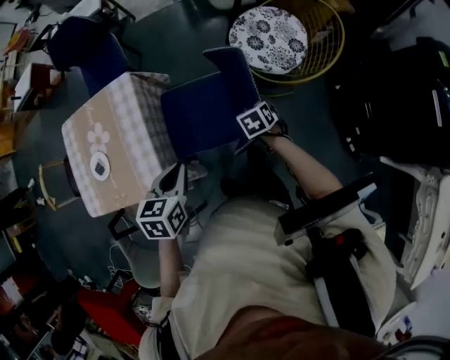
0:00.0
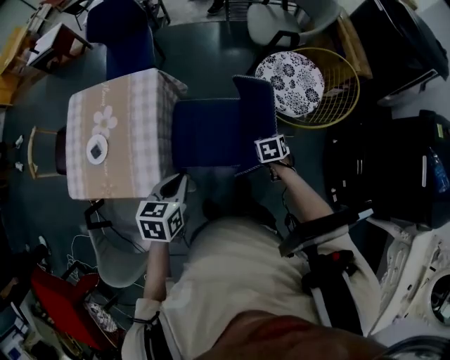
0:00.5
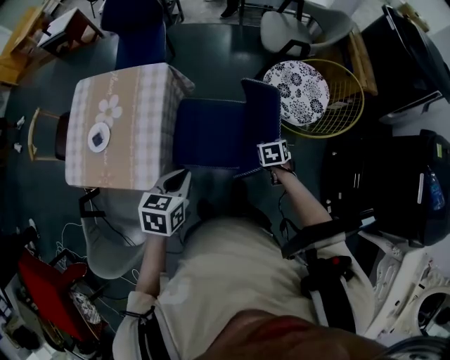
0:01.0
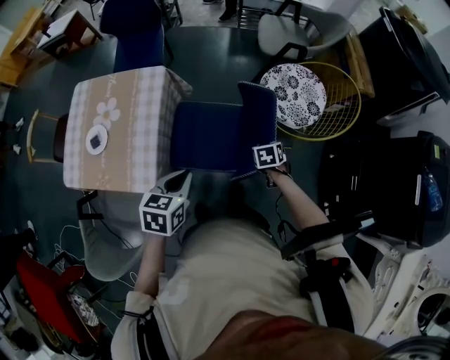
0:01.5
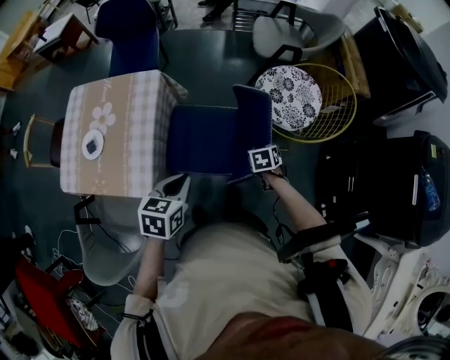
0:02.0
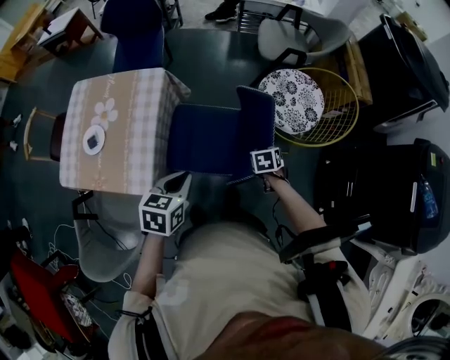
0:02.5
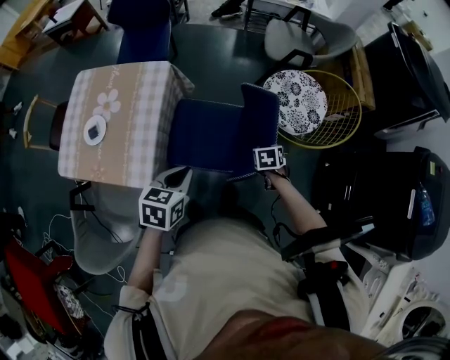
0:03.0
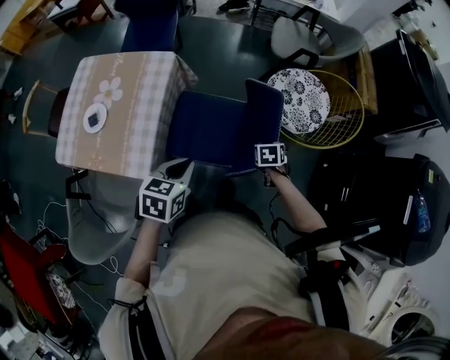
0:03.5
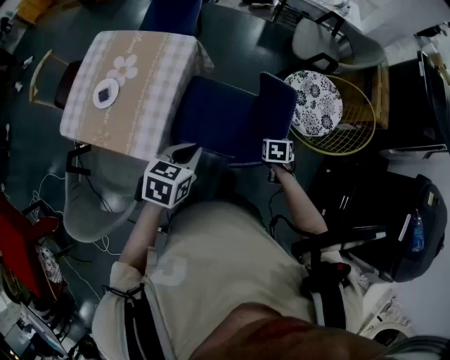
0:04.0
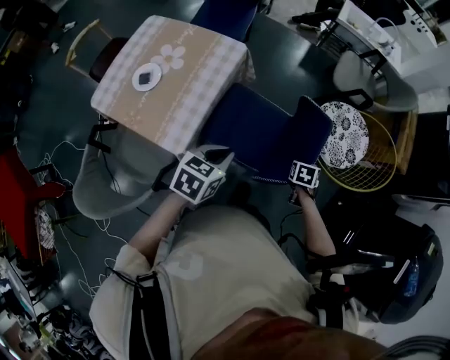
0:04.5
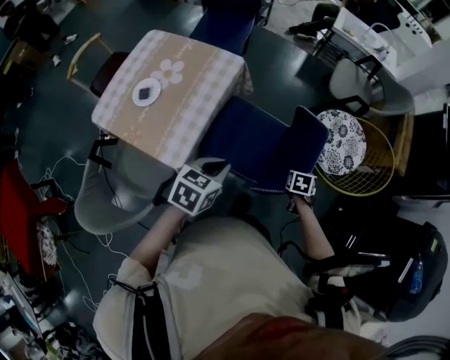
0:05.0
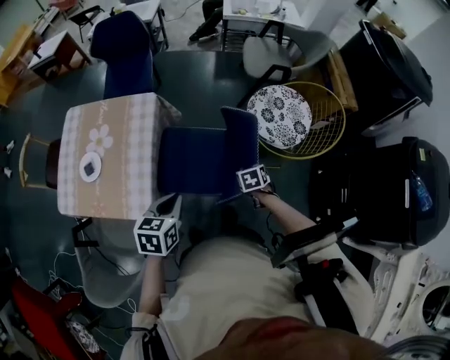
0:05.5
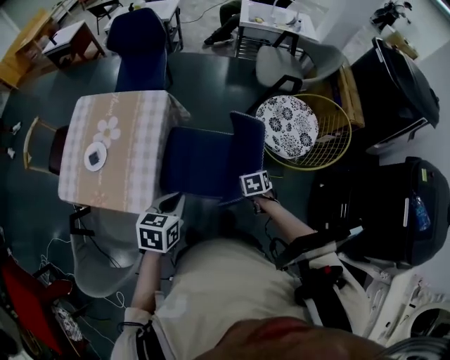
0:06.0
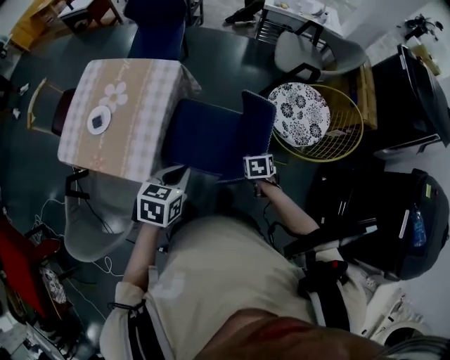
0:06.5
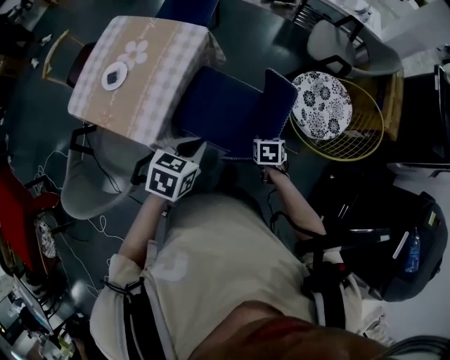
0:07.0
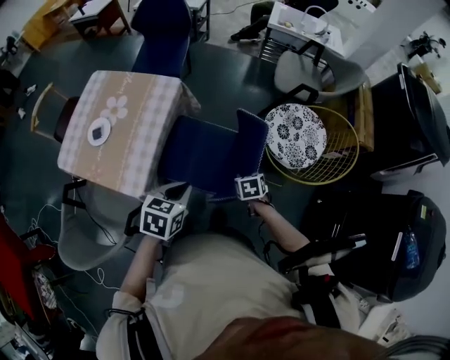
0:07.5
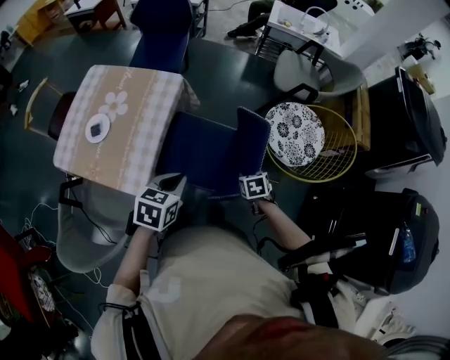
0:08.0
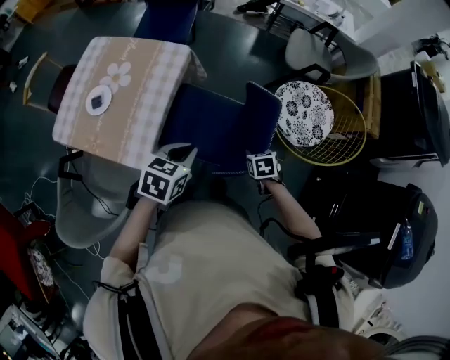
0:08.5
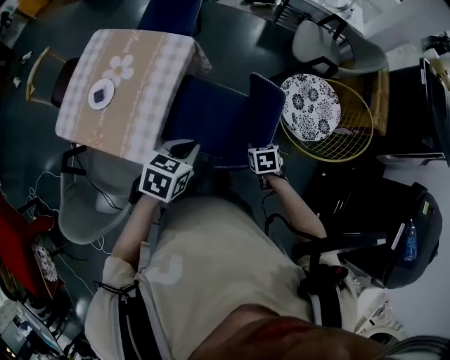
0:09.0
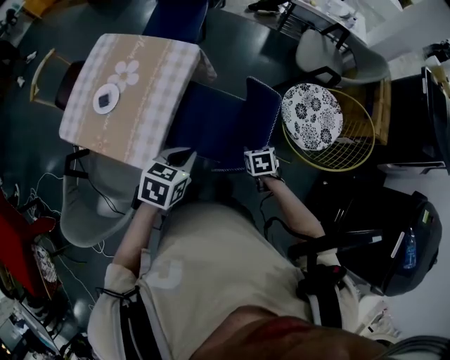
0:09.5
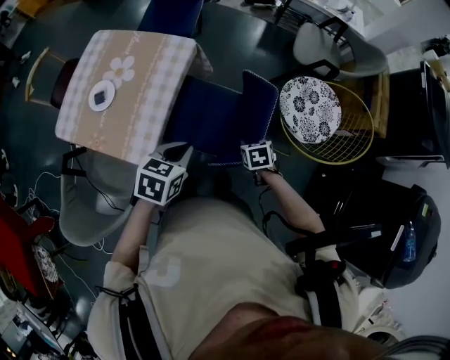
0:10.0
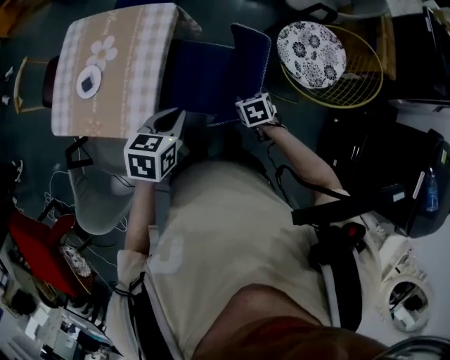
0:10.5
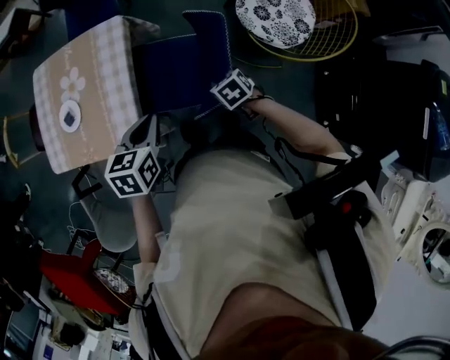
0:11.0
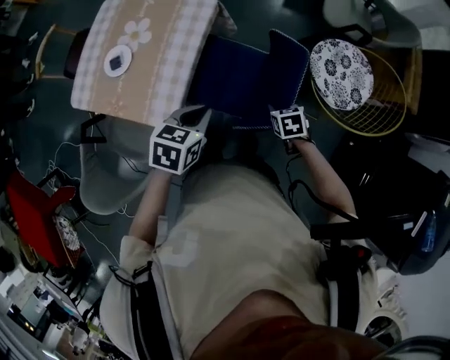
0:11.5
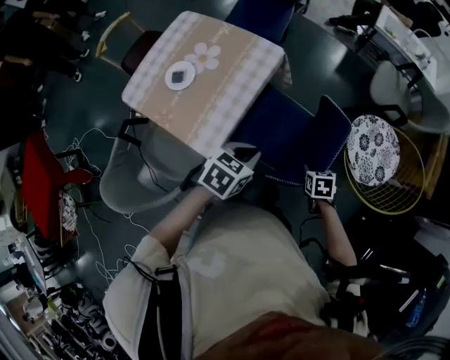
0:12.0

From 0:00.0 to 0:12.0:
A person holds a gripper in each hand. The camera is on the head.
From 0:00.0 to 0:04.0: The grippers move only a little.
From 0:04.0 to 0:08.0: The grippers stay close to where they were, moving slightly.
From 0:08.0 to 0:10.0: The right gripper ends up approximately 5 cm from where it was.
From 0:10.0 to 0:12.0: There are only small adjustments of the grippers.

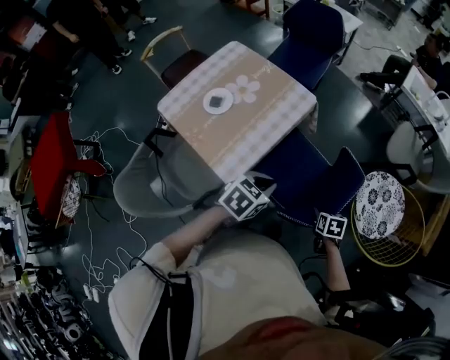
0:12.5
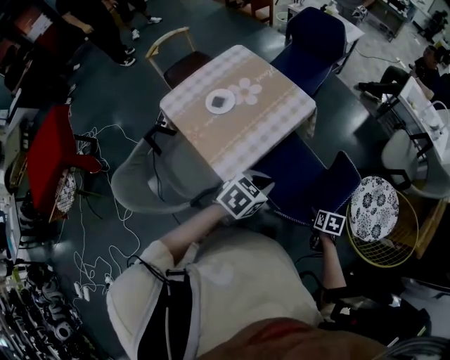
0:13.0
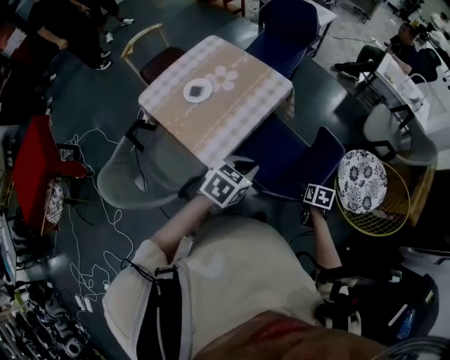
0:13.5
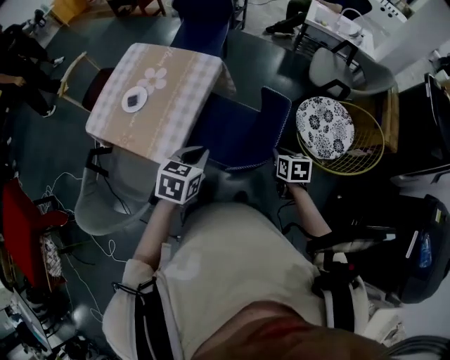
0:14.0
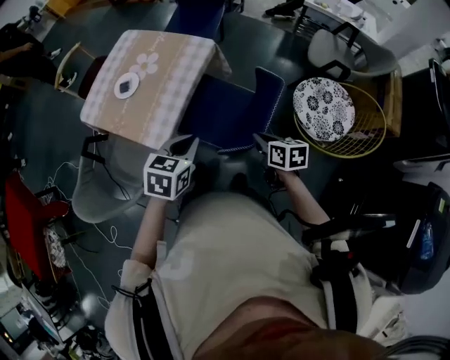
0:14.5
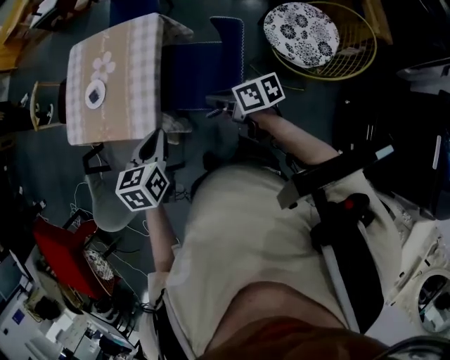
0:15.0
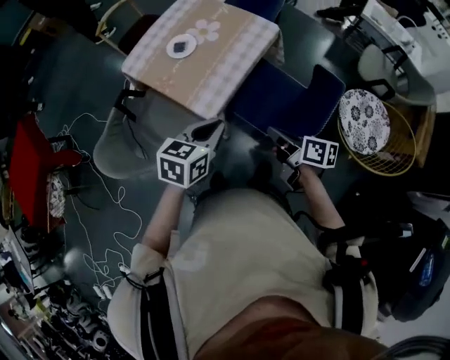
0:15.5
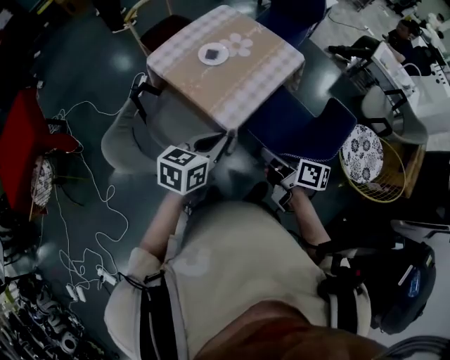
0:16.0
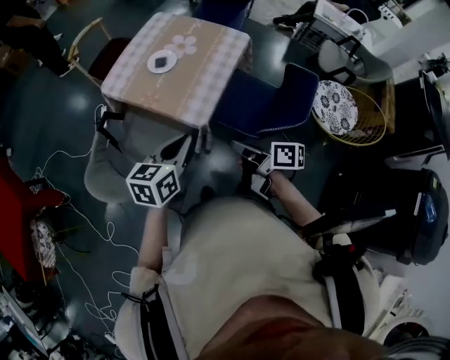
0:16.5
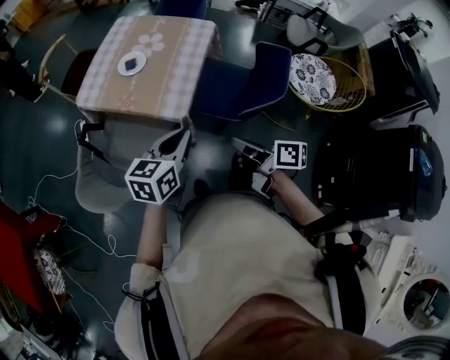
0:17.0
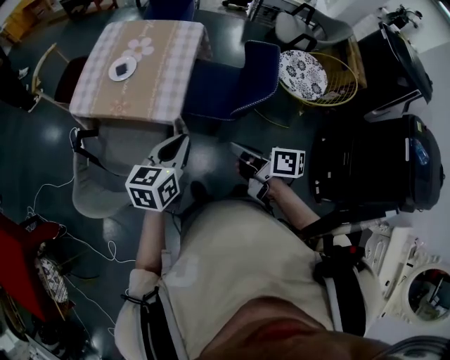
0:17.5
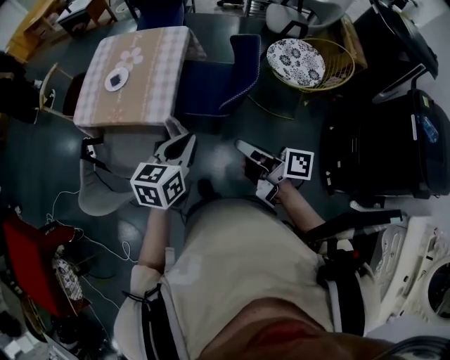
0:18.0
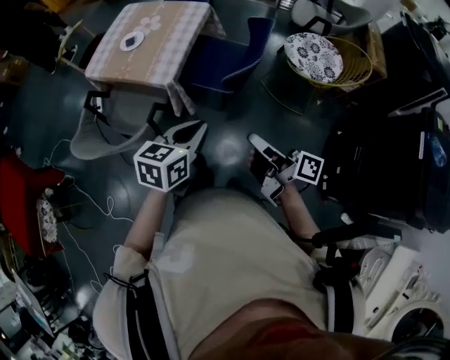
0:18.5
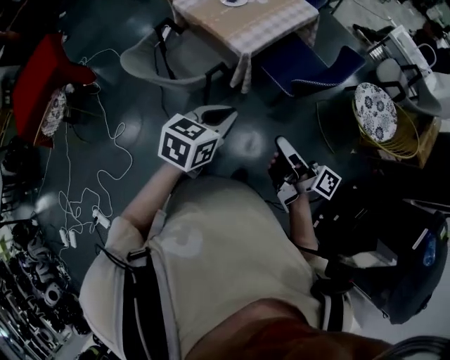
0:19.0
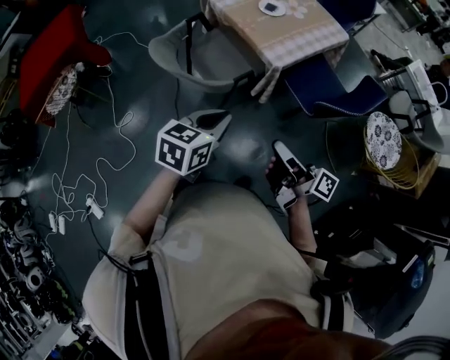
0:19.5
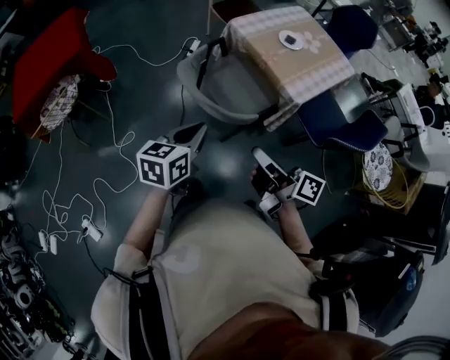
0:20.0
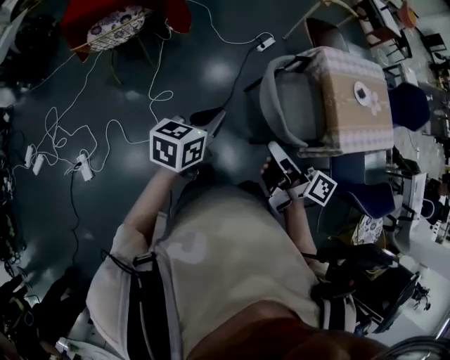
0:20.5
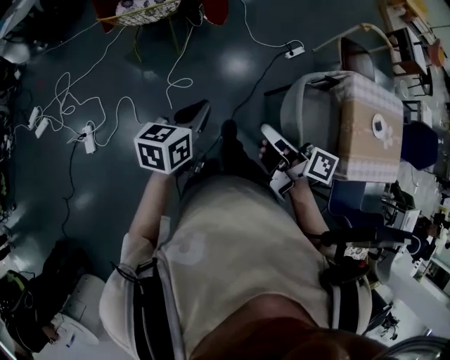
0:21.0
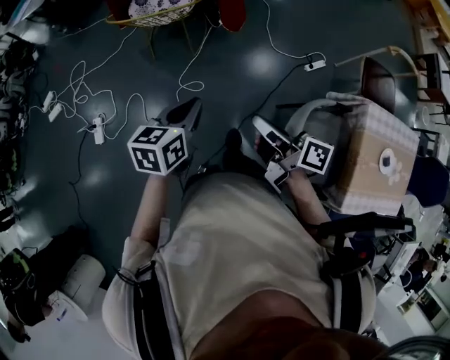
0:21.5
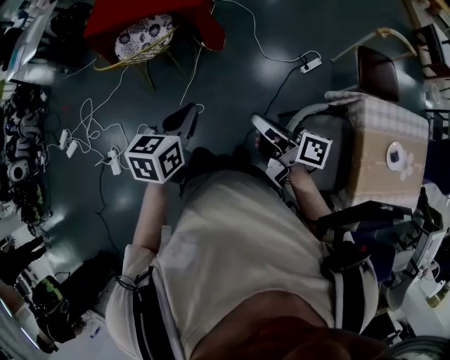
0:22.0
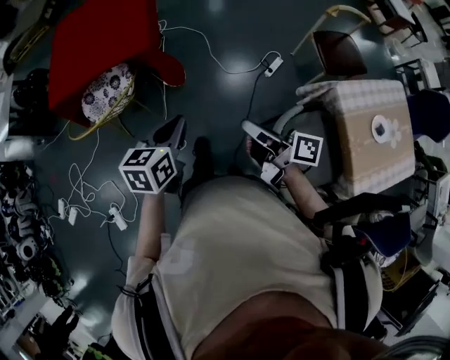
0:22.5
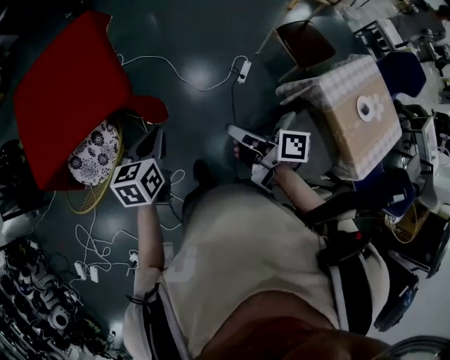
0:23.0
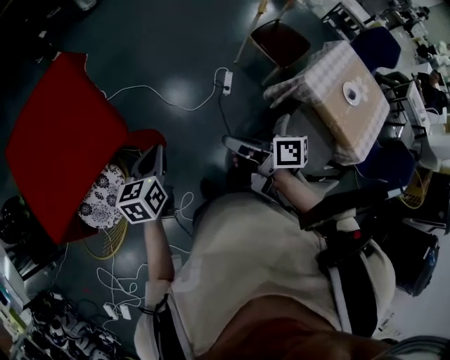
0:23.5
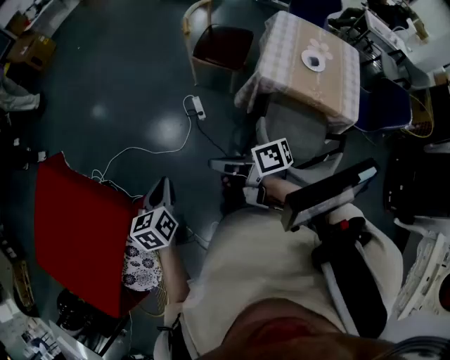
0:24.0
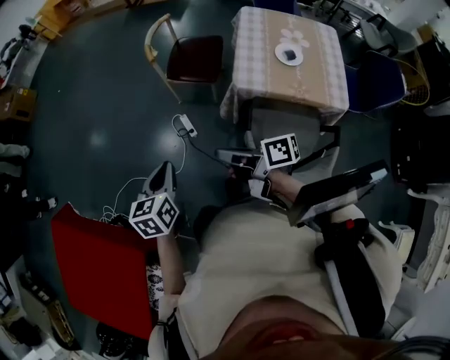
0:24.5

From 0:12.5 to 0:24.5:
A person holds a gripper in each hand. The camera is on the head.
From 0:12.5 to 0:14.5: The right gripper travels upward by about 10 cm, rotates approximately 30 degrees, and closes, while the left gripper is displaced backward by about 5 cm.
From 0:14.5 to 0:16.5: Both grippers travel together to the left, approximately 30 cm. The left gripper turns by some 30 degrees. The right gripper swivels roughly 30 degrees.
From 0:16.5 to 0:18.5: Both grippers move to the right and backward, some 30 cm. The right gripper changes its angle by approximately 30 degrees.
From 0:18.5 to 0:20.5: The pair of grippers is taken roughly 60 cm. The right gripper rotates about 60 degrees; the left gripper rotates approximately 60 degrees.
From 0:20.5 to 0:22.5: The right gripper ends up about 40 cm from where it was. Meanwhile the left gripper shifts by about 35 cm.
From 0:22.5 to 0:24.5: The right gripper moves roughly 25 cm, and turns by approximately 50 degrees. Meanwhile the left gripper changes place by about 35 cm, and swivels about 50 degrees.

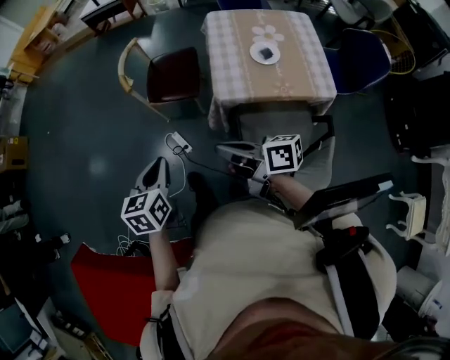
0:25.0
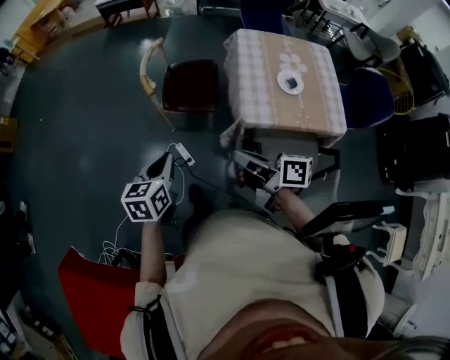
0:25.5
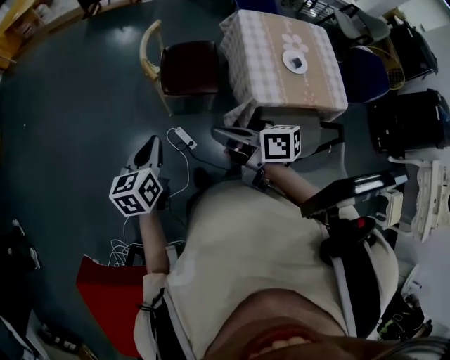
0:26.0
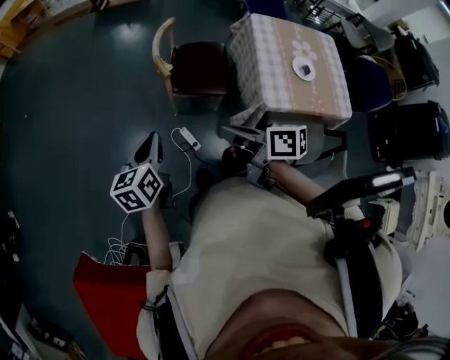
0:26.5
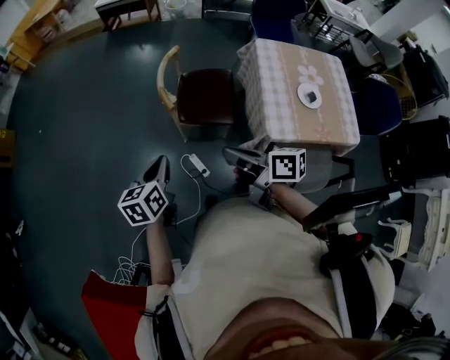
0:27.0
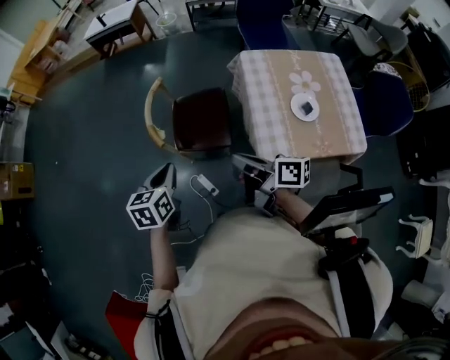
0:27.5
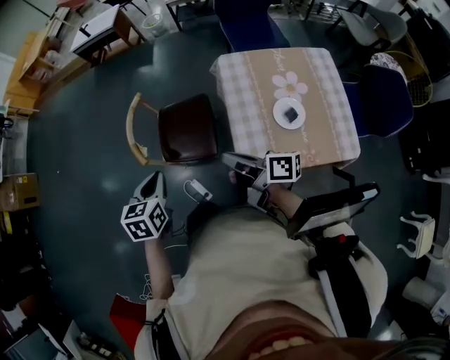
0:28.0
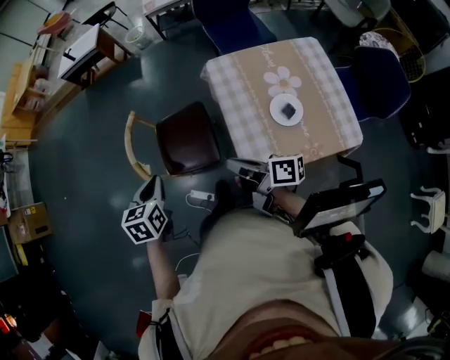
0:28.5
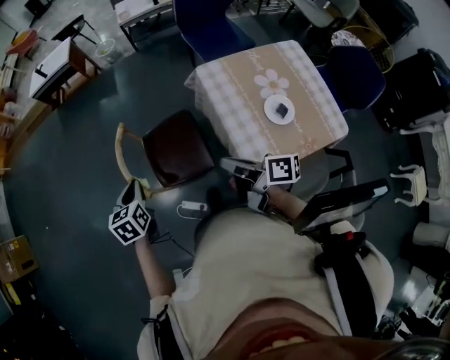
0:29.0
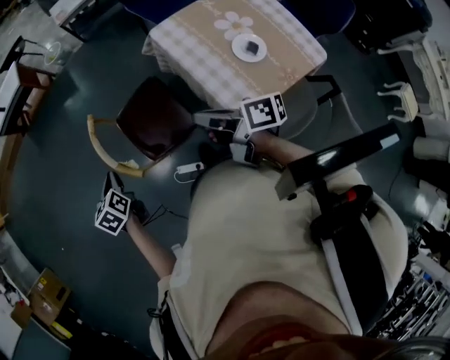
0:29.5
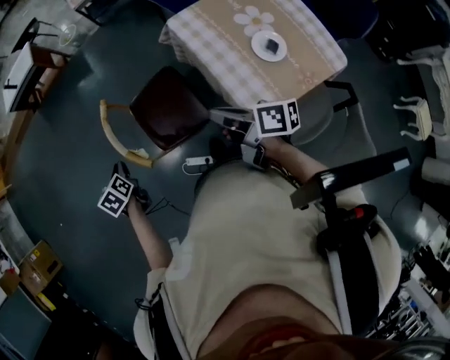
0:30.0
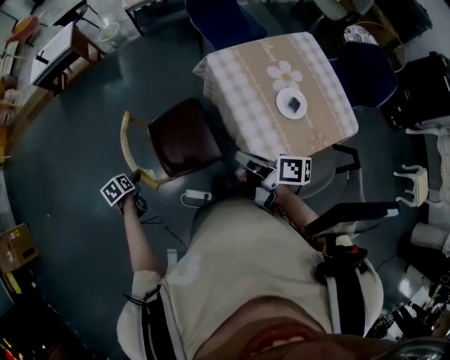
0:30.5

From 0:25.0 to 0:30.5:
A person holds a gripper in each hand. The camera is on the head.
From 0:25.0 to 0:27.0: The grippers both shift forward and to the left by roughly 30 cm.
From 0:27.0 to 0:28.5: The two grippers go roughly 30 cm to the right and forward. The left gripper changes its angle by approximately 30 degrees.
From 0:28.5 to 0:30.5: The right gripper travels forward by approximately 5 cm. The left gripper travels to the left, downward and forward by roughly 35 cm, rotates roughly 30 degrees, and opens.
